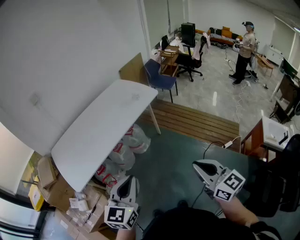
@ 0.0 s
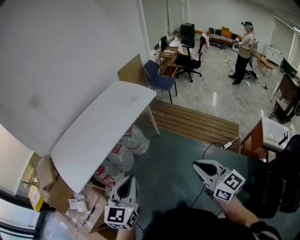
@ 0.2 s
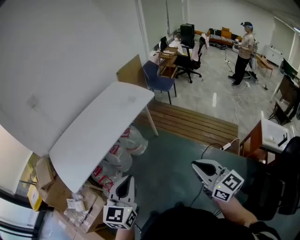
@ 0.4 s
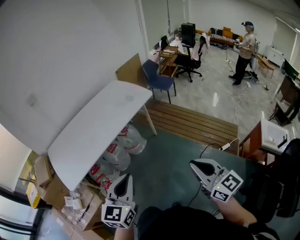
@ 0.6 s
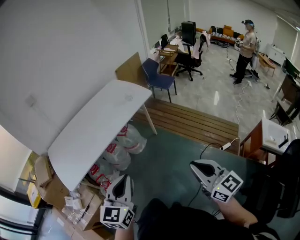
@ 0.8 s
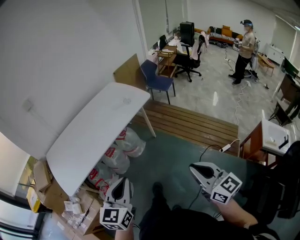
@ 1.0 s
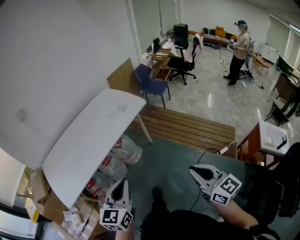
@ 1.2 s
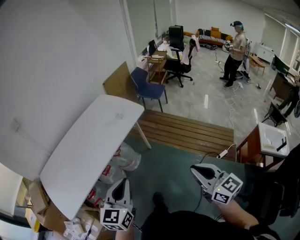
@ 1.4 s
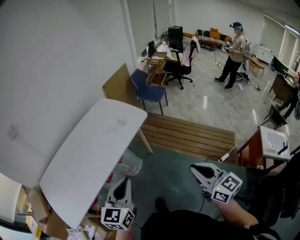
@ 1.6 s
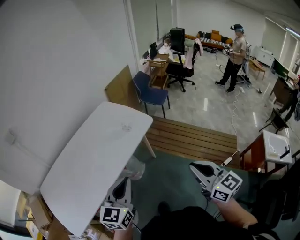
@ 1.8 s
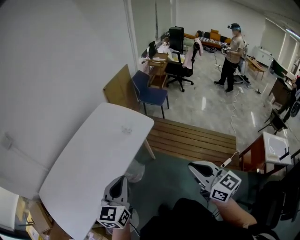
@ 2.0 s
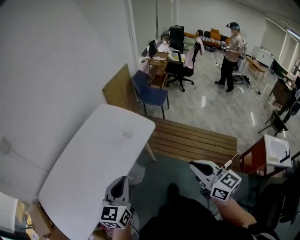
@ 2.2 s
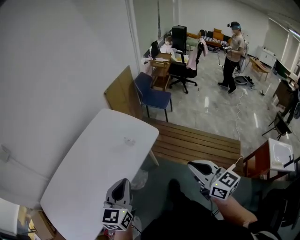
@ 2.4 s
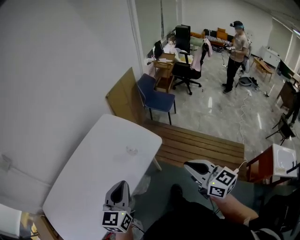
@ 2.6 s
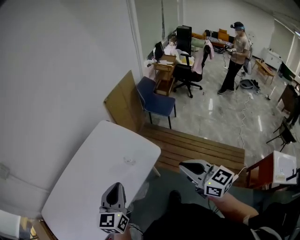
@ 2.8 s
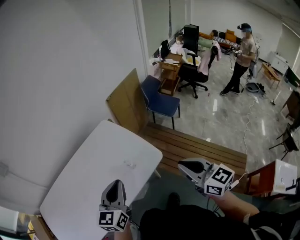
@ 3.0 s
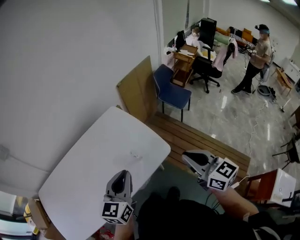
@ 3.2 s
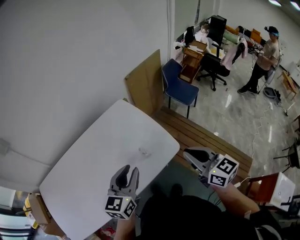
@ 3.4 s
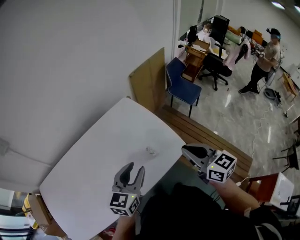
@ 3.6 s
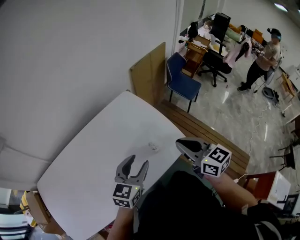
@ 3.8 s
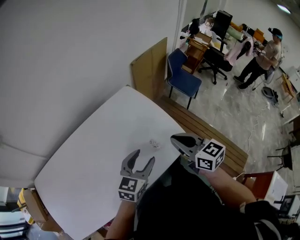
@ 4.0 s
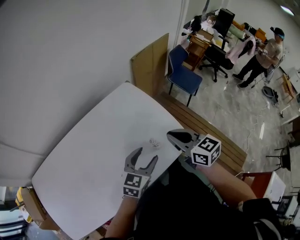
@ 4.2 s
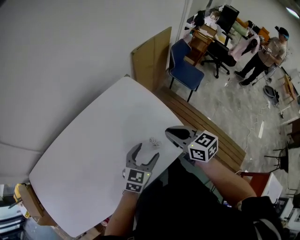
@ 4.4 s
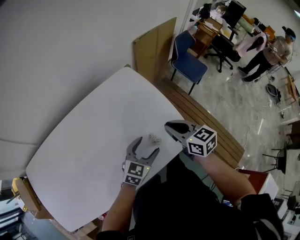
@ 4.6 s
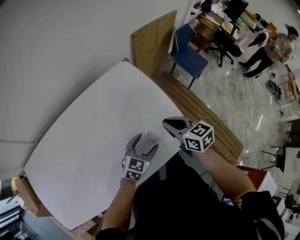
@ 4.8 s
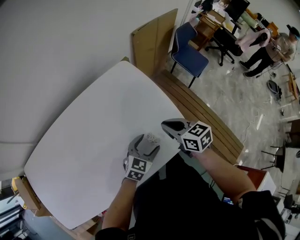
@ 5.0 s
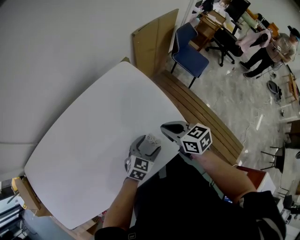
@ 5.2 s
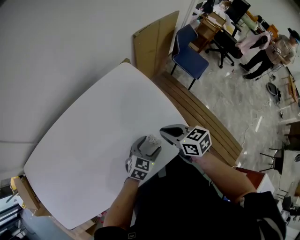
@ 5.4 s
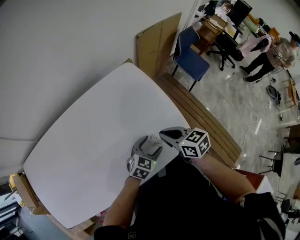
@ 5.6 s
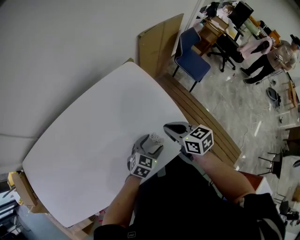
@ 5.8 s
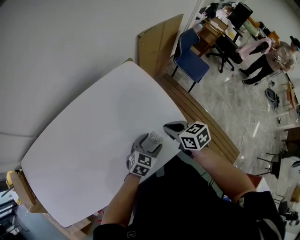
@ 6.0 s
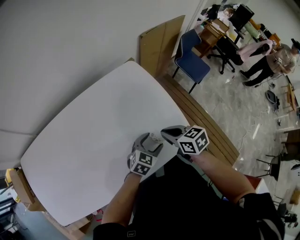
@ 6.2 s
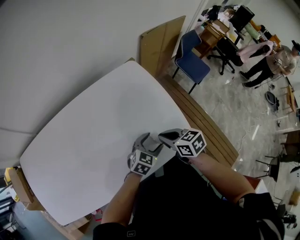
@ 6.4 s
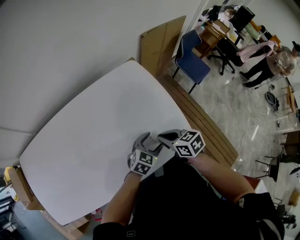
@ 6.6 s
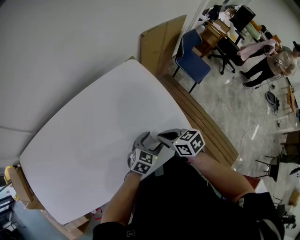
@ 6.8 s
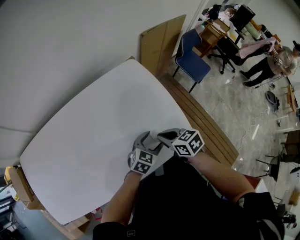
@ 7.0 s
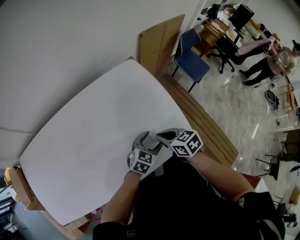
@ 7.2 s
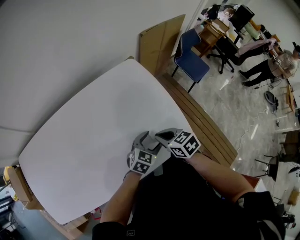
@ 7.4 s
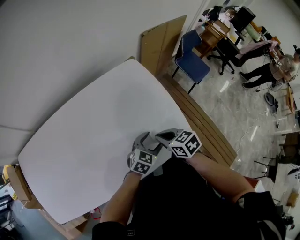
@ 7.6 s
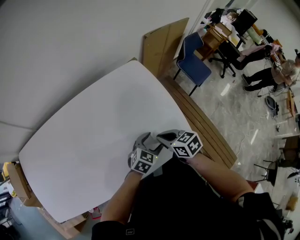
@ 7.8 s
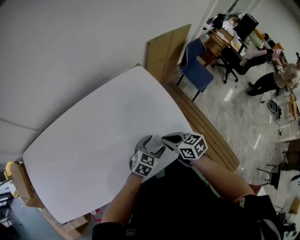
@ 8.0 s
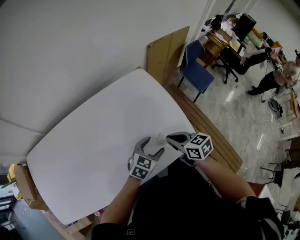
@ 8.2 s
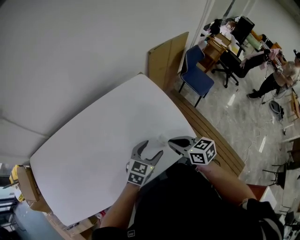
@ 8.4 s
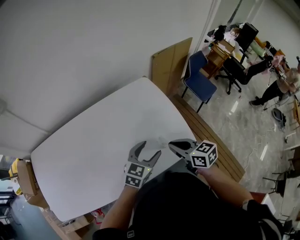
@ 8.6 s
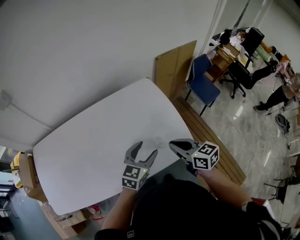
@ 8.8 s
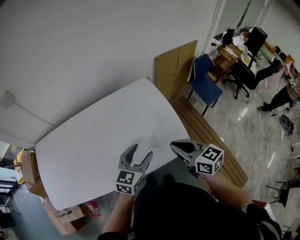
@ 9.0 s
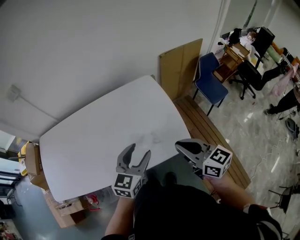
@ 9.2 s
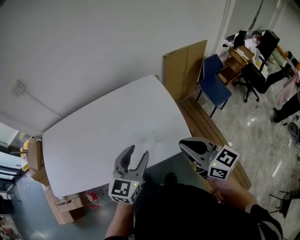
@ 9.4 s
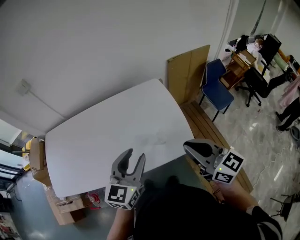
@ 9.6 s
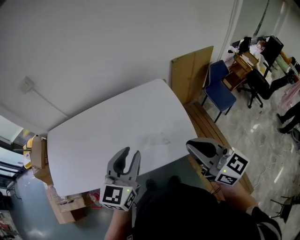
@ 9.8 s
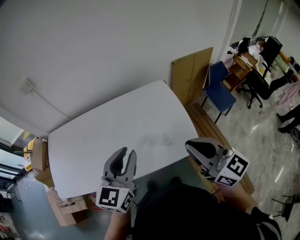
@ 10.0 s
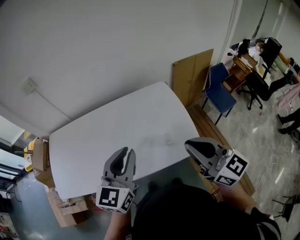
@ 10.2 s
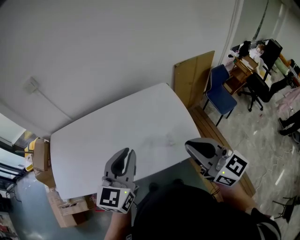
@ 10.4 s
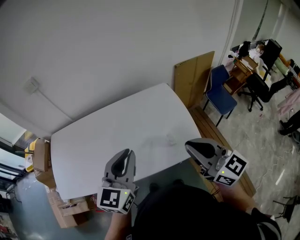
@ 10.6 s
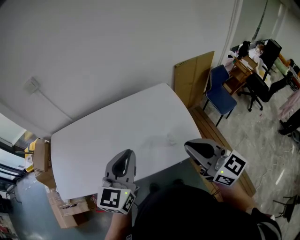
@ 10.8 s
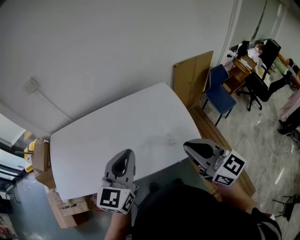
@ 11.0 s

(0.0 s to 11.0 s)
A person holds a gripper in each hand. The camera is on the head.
0.0 s - 1.6 s: The right gripper is displaced forward and to the right by roughly 25 cm. Meanwhile the left gripper travels forward by roughly 25 cm.
1.6 s - 3.2 s: The two grippers go some 40 cm forward.
3.2 s - 4.8 s: The right gripper travels downward, forward and to the left by some 35 cm, and turns by approximately 30 degrees, while the left gripper moves downward and forward, approximately 30 cm, rotates approximately 20 degrees, and opens its fingers.
4.8 s - 6.2 s: The right gripper moves approximately 5 cm.
6.2 s - 7.8 s: The grippers move only a little.
7.8 s - 9.4 s: The right gripper moves upward and backward, some 25 cm, and tilts its fingers about 30 degrees upward. The left gripper goes approximately 25 cm upward, and rotates approximately 40 degrees.
9.4 s - 11.0 s: Both grippers move to the left and upward, roughly 10 cm. The left gripper closes up.

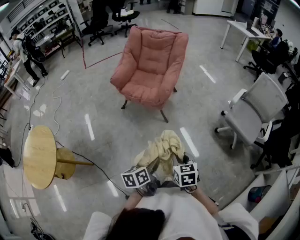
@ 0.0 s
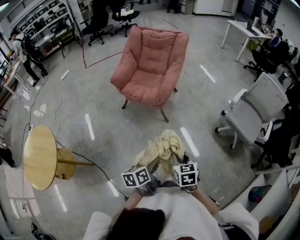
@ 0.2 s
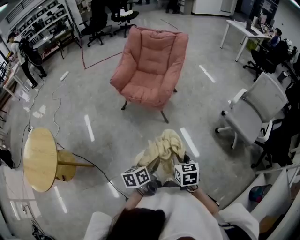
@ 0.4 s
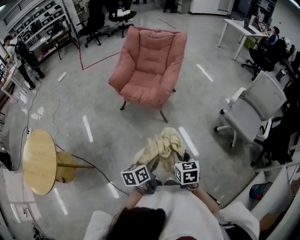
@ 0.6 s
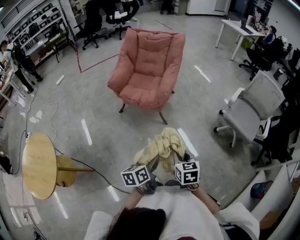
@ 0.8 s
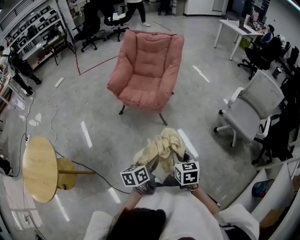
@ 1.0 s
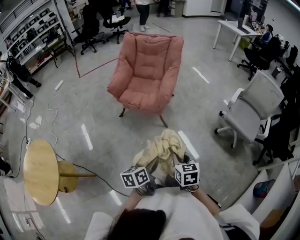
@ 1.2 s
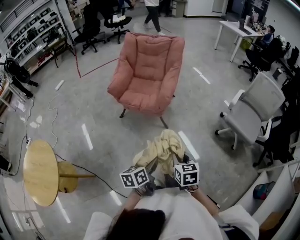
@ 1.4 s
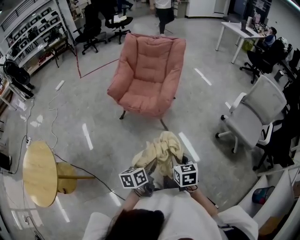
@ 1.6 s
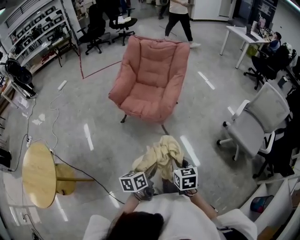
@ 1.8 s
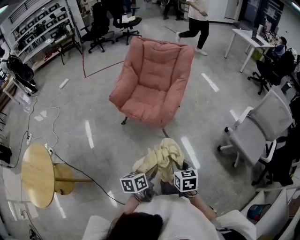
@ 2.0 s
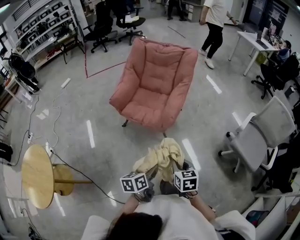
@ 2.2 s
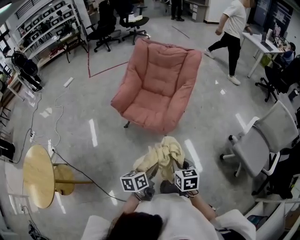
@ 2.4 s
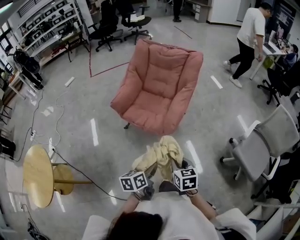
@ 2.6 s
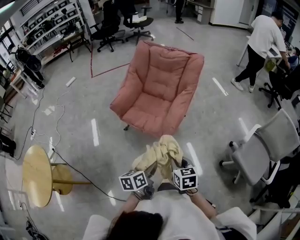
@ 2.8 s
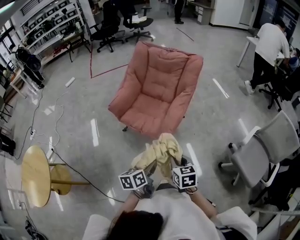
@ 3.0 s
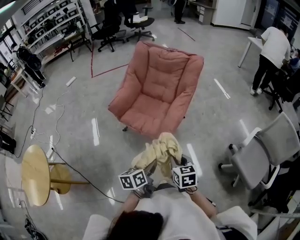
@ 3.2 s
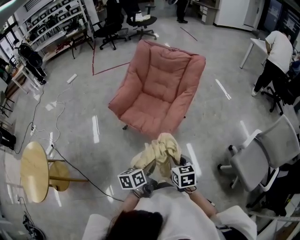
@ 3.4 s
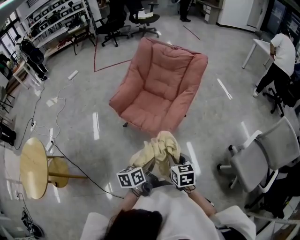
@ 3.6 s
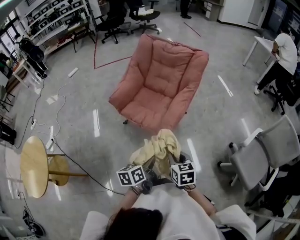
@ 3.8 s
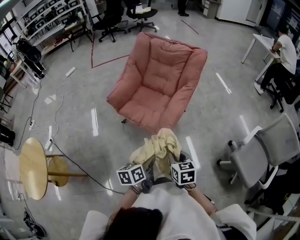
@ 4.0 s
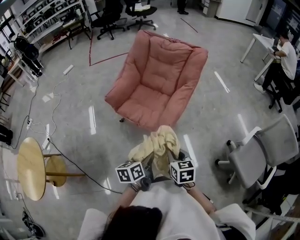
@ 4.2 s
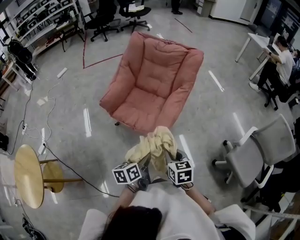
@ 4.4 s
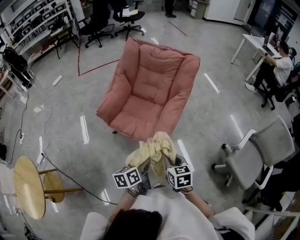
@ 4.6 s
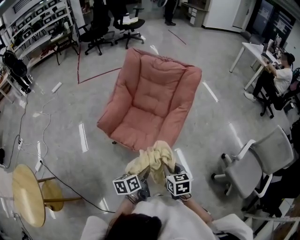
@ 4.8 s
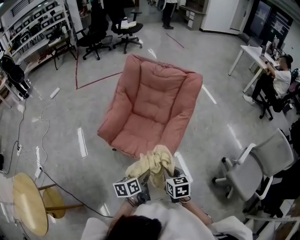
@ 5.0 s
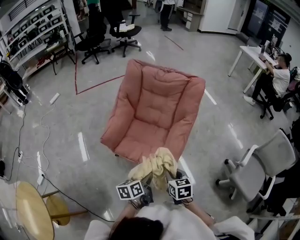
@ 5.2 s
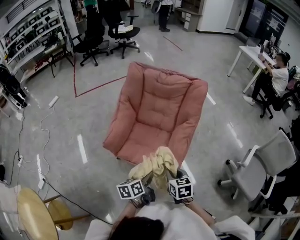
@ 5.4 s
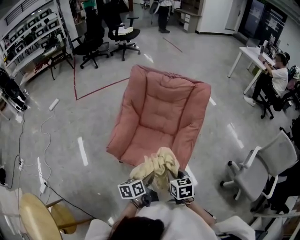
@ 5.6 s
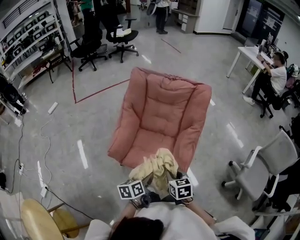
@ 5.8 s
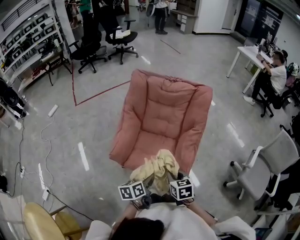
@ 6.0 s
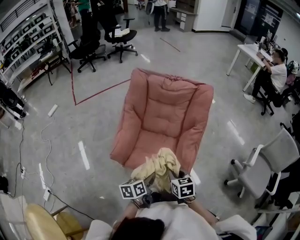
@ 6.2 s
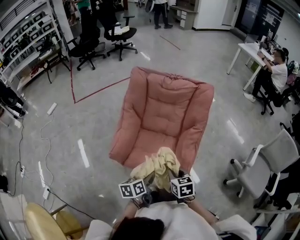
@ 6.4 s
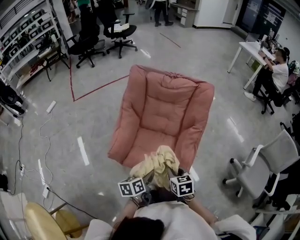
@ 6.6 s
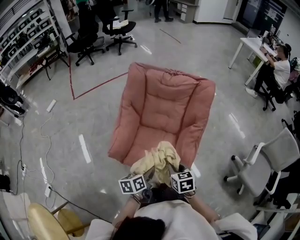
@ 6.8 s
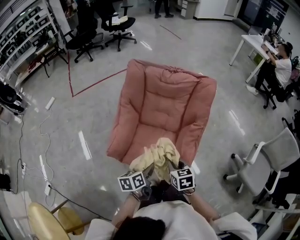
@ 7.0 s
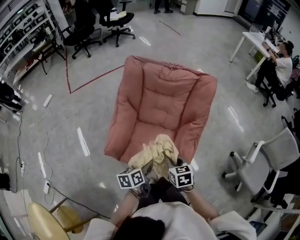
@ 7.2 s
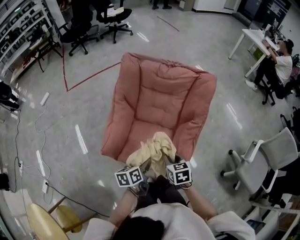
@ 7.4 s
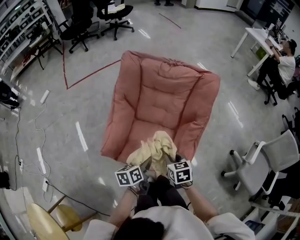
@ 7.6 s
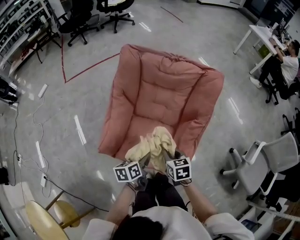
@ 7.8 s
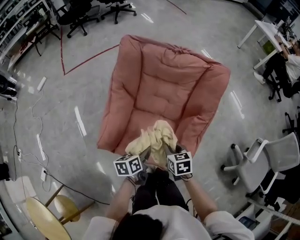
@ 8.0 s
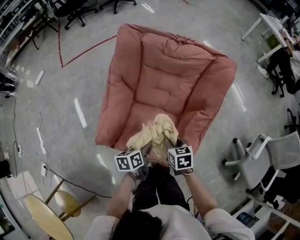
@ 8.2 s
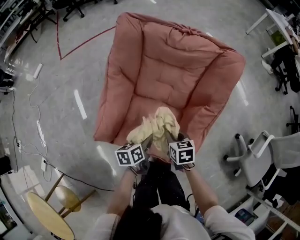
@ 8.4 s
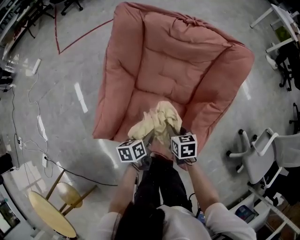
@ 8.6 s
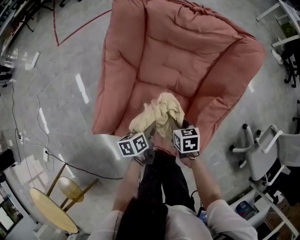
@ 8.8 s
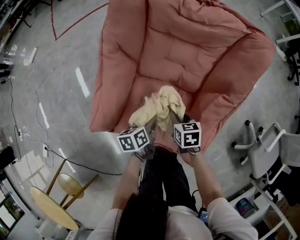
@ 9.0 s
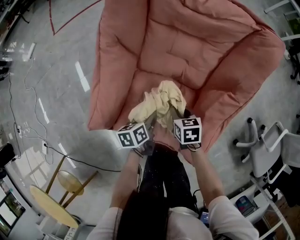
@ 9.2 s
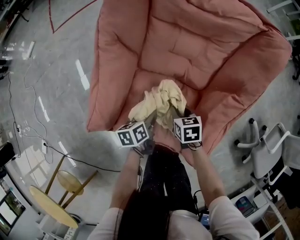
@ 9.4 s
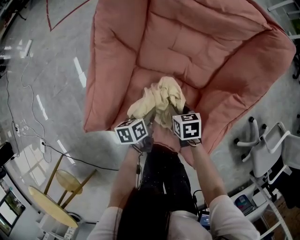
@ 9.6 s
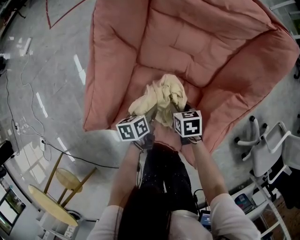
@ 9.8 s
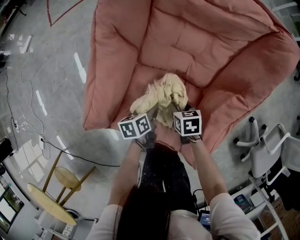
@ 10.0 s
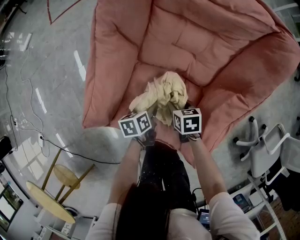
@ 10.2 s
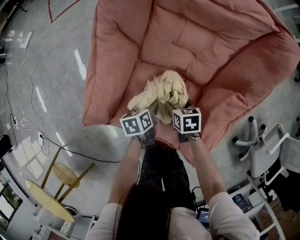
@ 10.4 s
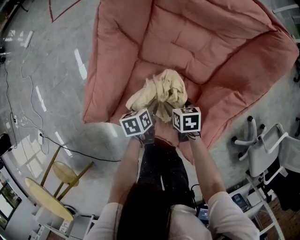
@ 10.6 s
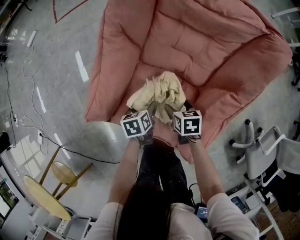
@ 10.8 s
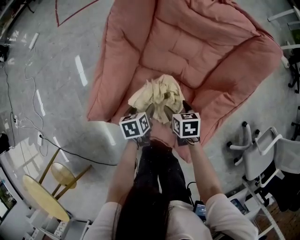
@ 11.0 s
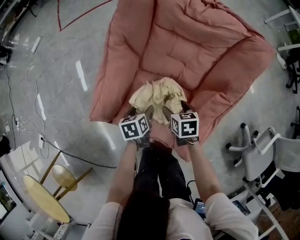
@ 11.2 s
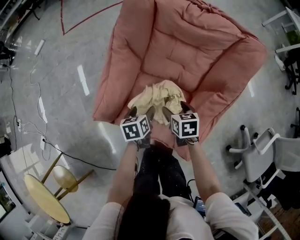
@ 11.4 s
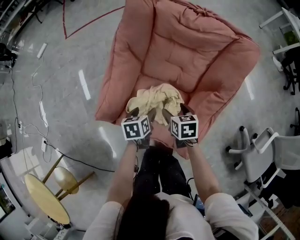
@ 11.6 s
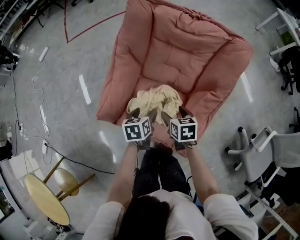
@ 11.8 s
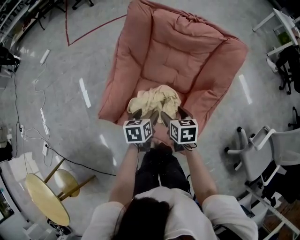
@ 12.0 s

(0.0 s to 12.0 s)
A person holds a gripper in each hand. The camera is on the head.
0.0 s - 1.6 s: The left gripper travels forward and to the left by approximately 10 cm, while the right gripper heads forward, covering about 5 cm.
1.6 s - 3.0 s: The grippers both shift forward by approximately 25 cm.
3.0 s - 4.4 s: Both grippers travel together forward, approximately 5 cm.
4.4 s - 6.0 s: Both grippers travel together forward and to the left, roughly 25 cm.
6.0 s - 7.6 s: Both grippers move forward, approximately 15 cm.
7.6 s - 9.0 s: Both grippers move downward and forward, some 25 cm.
9.0 s - 10.4 s: The grippers both shift downward by some 10 cm. The right gripper opens.
10.4 s - 12.0 s: Both grippers travel together upward, roughly 25 cm.

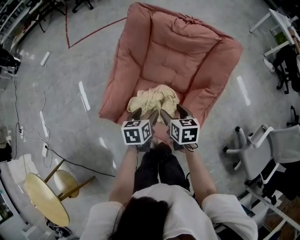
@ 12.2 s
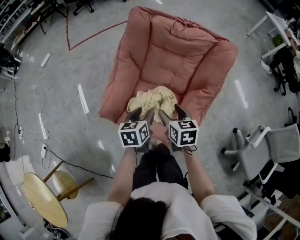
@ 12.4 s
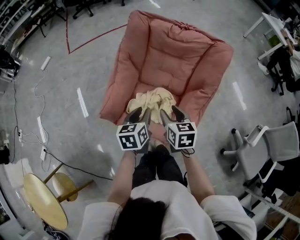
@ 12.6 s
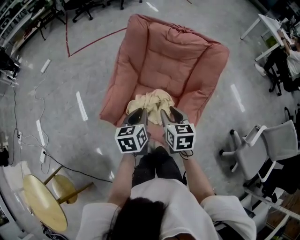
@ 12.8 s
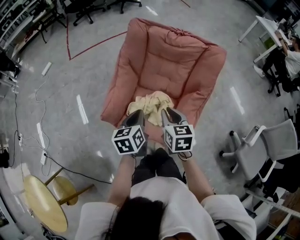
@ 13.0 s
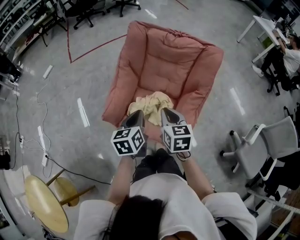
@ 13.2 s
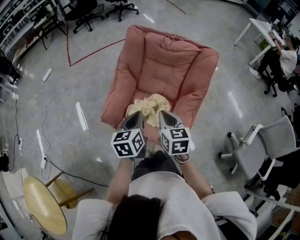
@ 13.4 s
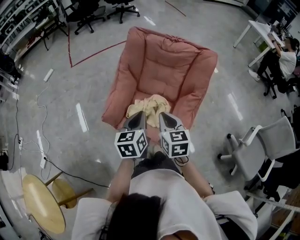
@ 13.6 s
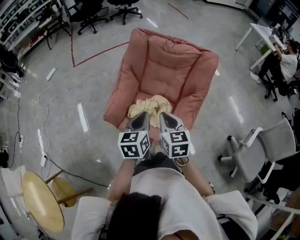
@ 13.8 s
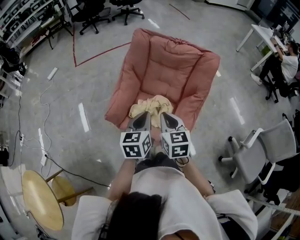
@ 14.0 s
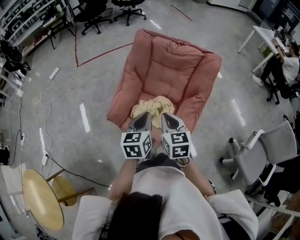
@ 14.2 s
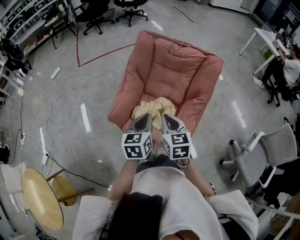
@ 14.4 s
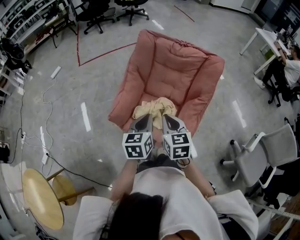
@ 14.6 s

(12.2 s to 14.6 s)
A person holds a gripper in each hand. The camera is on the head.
12.2 s - 13.4 s: The grippers both shift upward and backward by approximately 20 cm. The right gripper closes its fingers. Meanwhile the left gripper closes.
13.4 s - 14.6 s: The right gripper changes place by roughly 5 cm.
